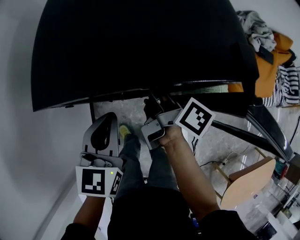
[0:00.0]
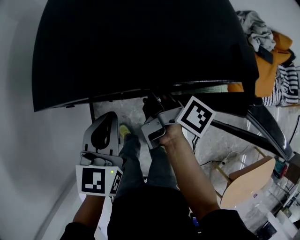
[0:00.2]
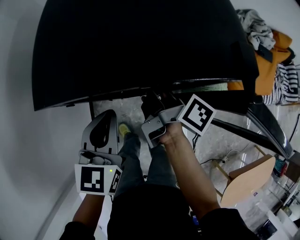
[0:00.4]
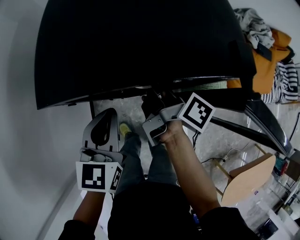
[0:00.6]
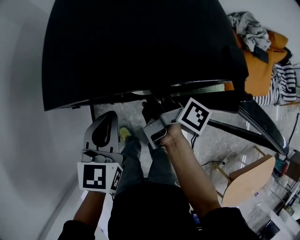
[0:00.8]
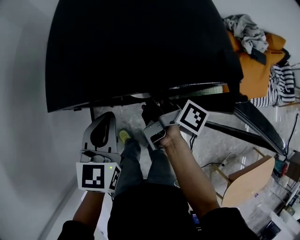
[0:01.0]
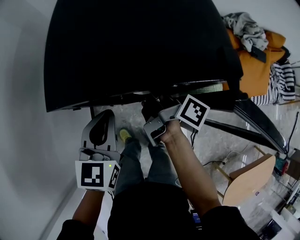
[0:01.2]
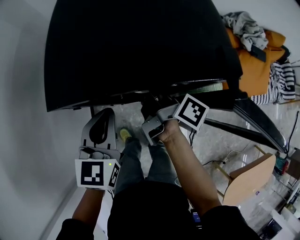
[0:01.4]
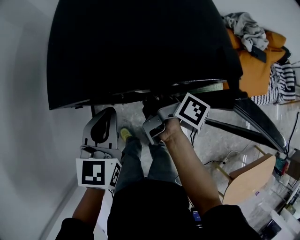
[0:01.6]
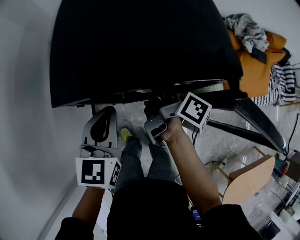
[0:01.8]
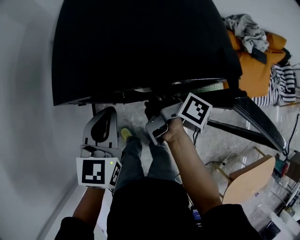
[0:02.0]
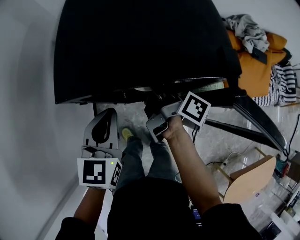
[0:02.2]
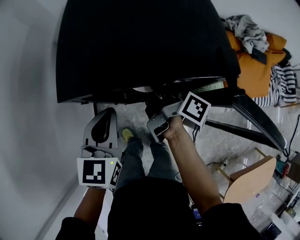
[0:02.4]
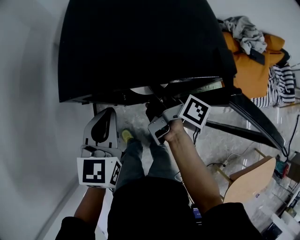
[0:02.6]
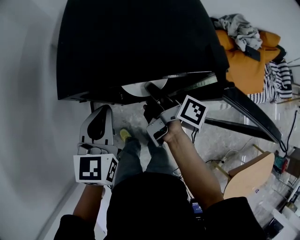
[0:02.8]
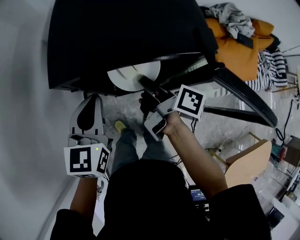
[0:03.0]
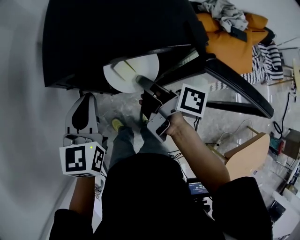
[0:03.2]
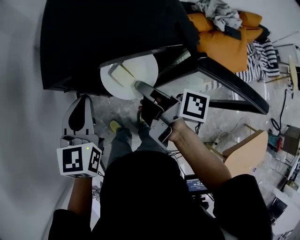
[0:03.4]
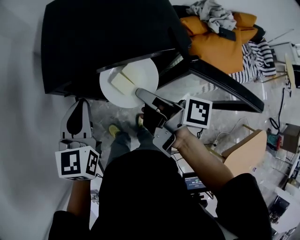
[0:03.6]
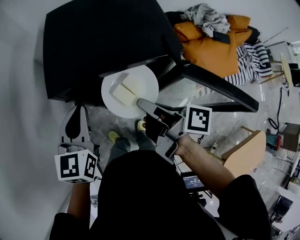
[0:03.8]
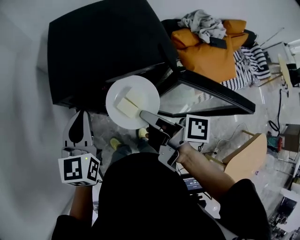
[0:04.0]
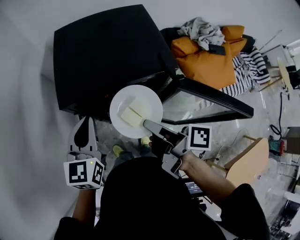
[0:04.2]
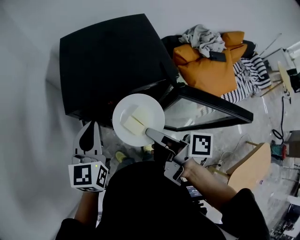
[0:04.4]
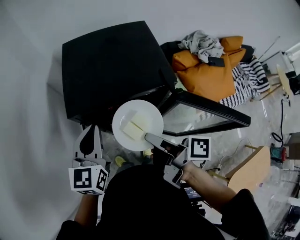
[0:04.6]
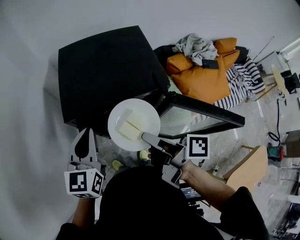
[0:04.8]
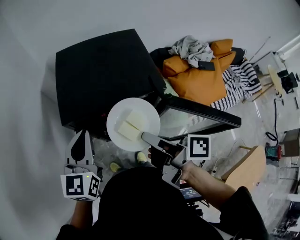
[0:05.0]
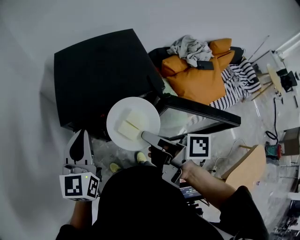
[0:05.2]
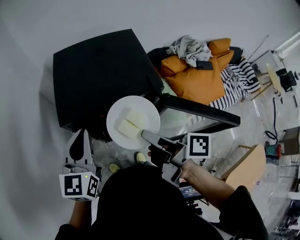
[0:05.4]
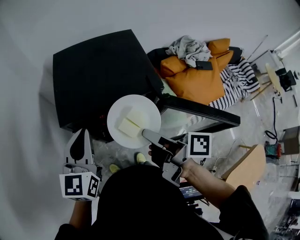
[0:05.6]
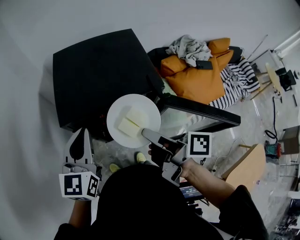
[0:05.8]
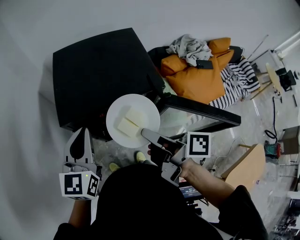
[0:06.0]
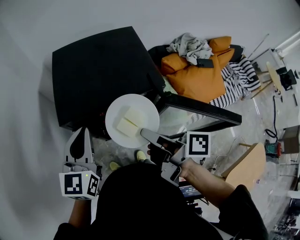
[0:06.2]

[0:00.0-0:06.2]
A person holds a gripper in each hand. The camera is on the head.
0:00.0 to 0:01.6: The right gripper closes.
0:01.6 to 0:03.2: The right gripper is displaced backward and upward by about 10 cm. The left gripper shifts by about 5 cm.
0:03.2 to 0:04.6: The right gripper moves upward and backward, roughly 15 cm. The left gripper is displaced upward by approximately 5 cm.
0:04.6 to 0:06.2: The grippers move only a little.

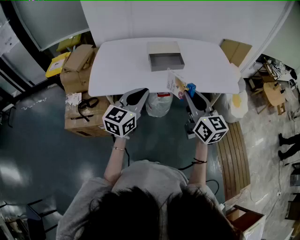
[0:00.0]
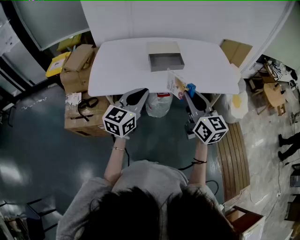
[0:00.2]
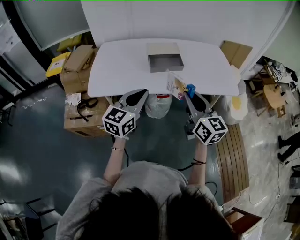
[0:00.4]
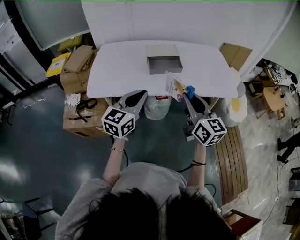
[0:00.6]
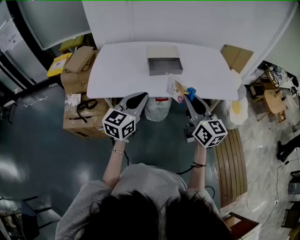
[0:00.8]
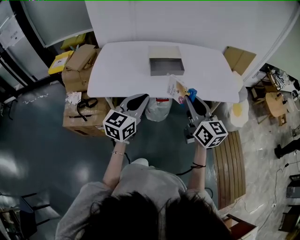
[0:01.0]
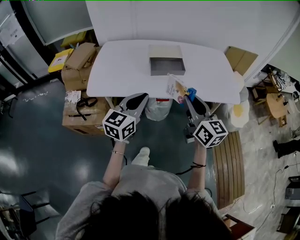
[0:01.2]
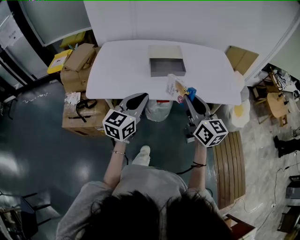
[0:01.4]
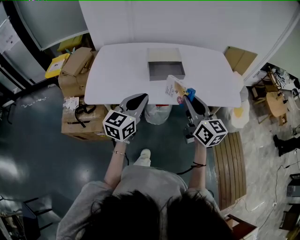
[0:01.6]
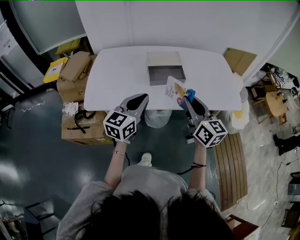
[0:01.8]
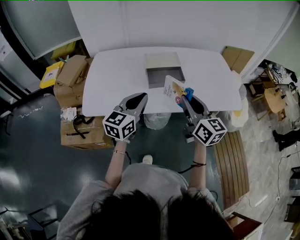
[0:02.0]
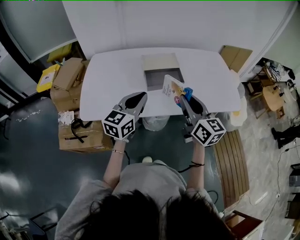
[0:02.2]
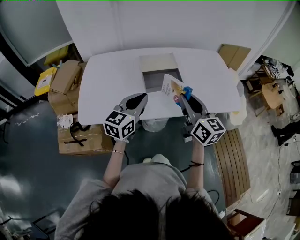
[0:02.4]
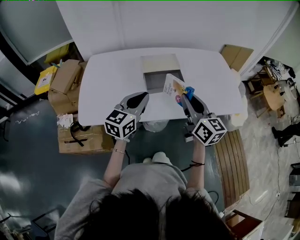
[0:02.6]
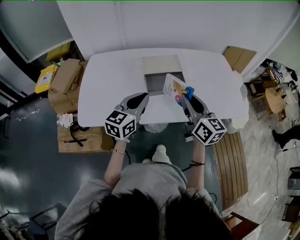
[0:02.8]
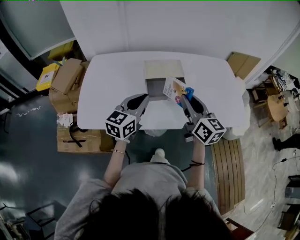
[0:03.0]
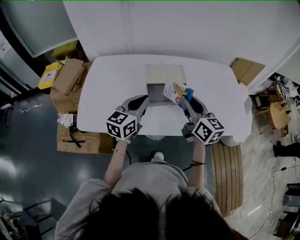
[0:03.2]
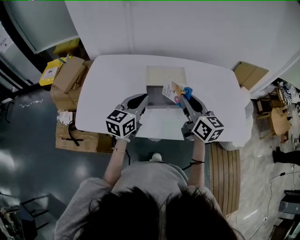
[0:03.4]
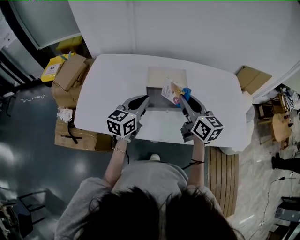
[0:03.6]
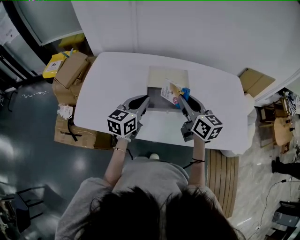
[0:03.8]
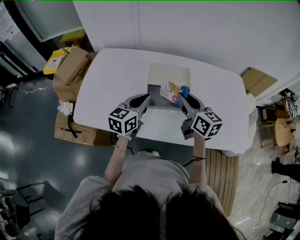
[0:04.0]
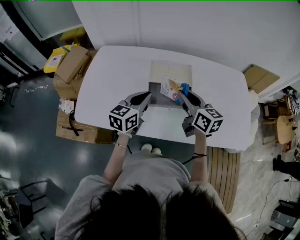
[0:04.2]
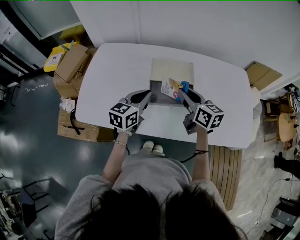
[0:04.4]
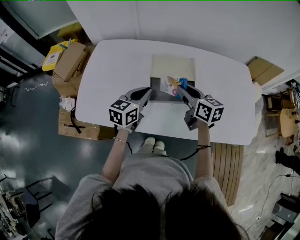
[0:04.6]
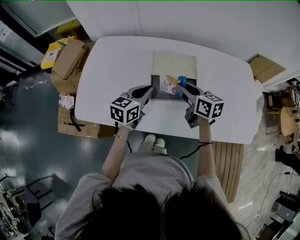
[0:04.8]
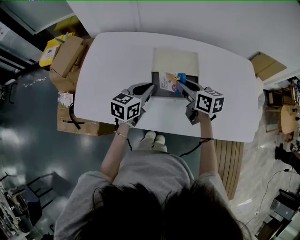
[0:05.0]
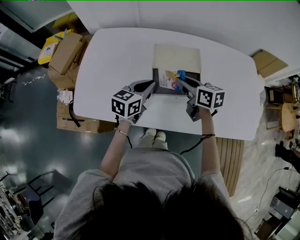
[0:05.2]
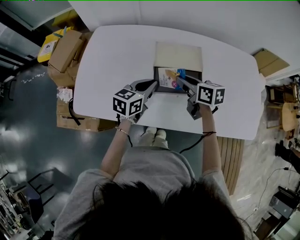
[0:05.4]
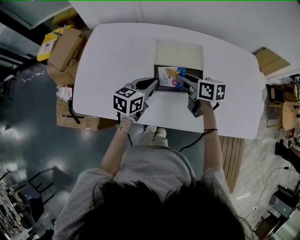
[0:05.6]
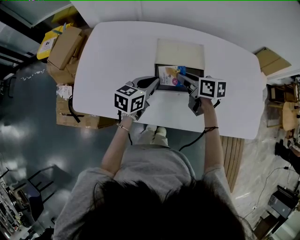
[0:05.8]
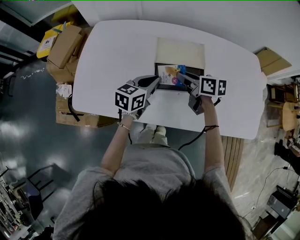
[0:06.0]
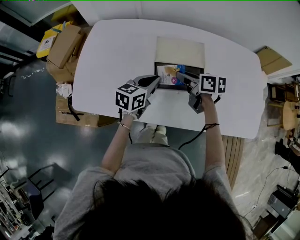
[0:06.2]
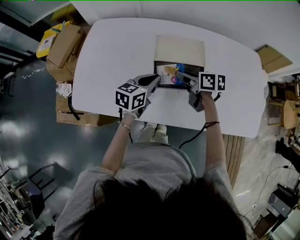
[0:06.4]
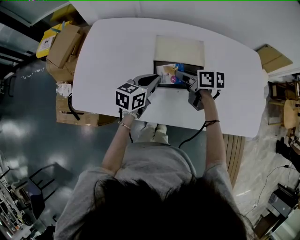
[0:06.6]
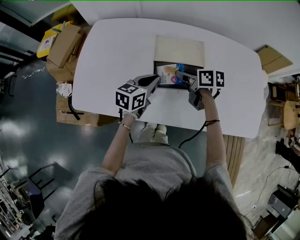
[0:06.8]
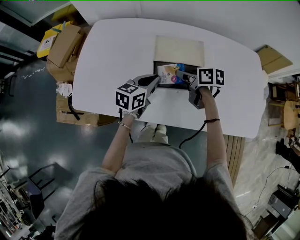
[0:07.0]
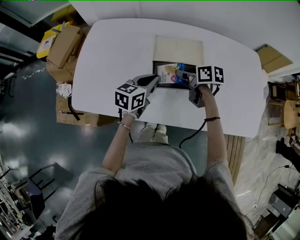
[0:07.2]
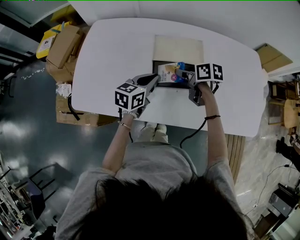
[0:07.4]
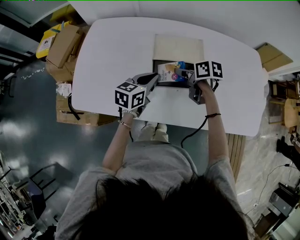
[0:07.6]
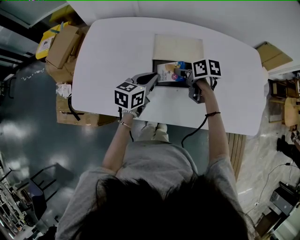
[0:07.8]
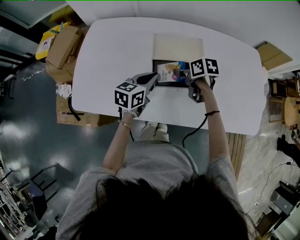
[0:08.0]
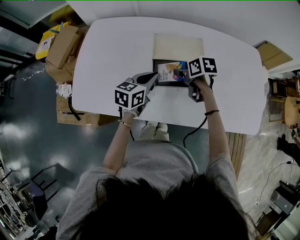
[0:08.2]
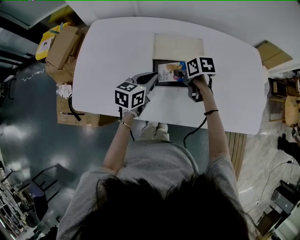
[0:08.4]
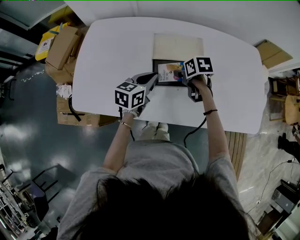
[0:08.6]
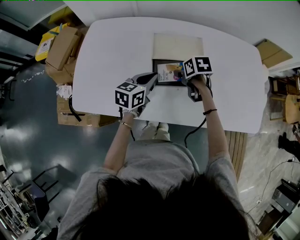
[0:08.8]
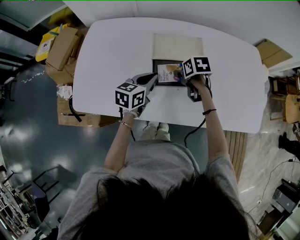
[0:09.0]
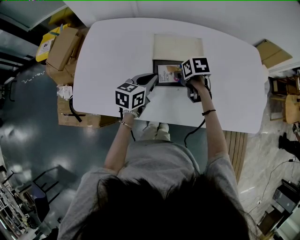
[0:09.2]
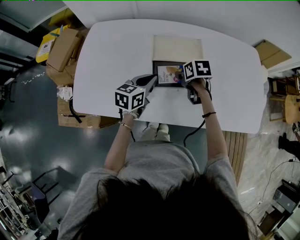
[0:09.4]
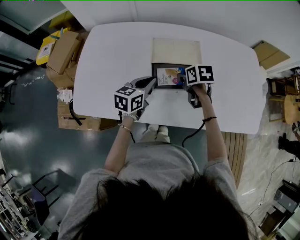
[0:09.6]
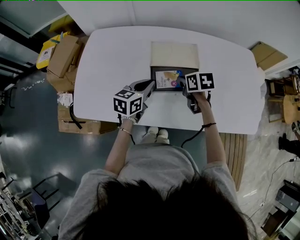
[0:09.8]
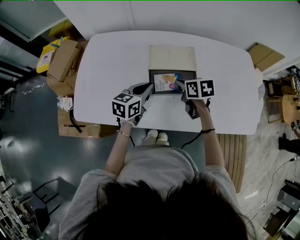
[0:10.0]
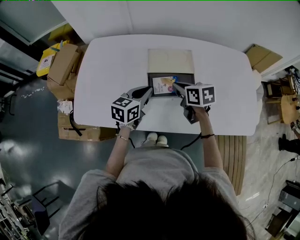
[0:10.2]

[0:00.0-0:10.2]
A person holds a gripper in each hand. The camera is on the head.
0:00.0 to 0:01.4: The right gripper moves forward, approximately 5 cm.
0:01.4 to 0:03.0: The two grippers go about 20 cm forward.
0:03.0 to 0:04.4: Both grippers travel together forward and downward, roughly 15 cm. The right gripper changes its angle by about 20 degrees.
0:04.4 to 0:05.8: The grippers both shift downward by roughly 10 cm. The right gripper turns by roughly 20 degrees.
0:05.8 to 0:07.2: The grippers move only a little.
0:07.2 to 0:08.8: The right gripper changes place by approximately 5 cm, changes its angle by some 30 degrees, and opens its fingers.
0:08.8 to 0:10.2: The right gripper goes some 10 cm upward, turns by some 20 degrees, and closes.

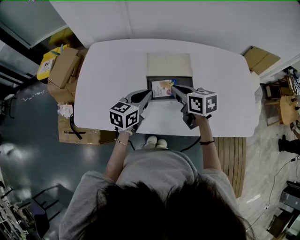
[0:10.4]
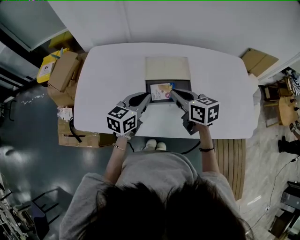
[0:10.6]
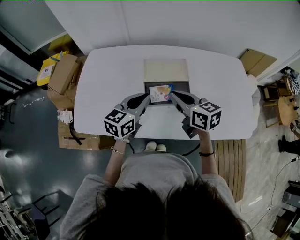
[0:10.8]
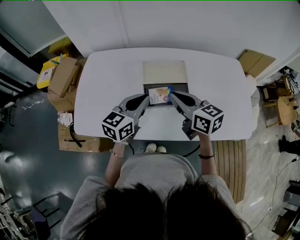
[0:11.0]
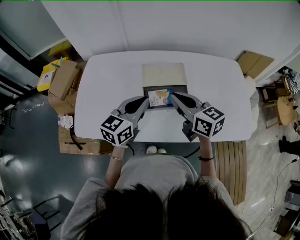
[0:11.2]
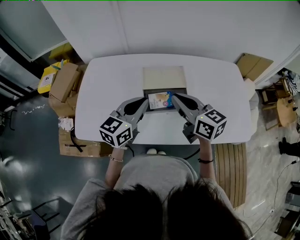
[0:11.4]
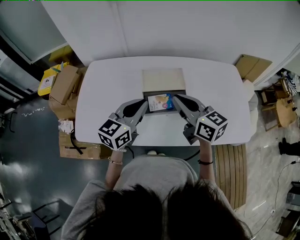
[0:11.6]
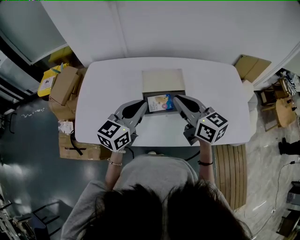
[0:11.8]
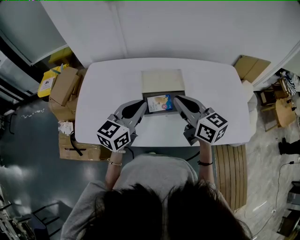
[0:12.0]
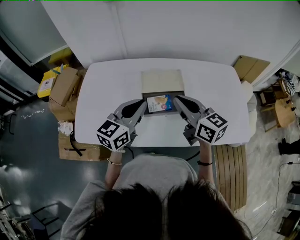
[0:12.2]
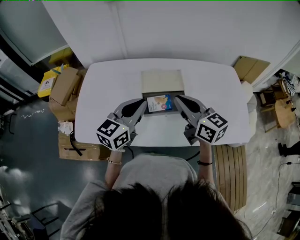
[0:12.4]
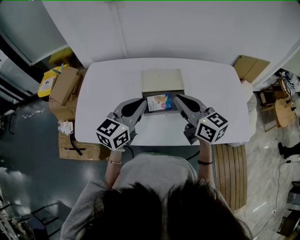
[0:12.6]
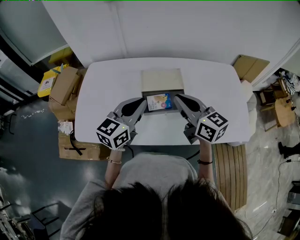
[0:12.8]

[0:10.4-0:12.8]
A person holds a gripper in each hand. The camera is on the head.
0:10.4 to 0:11.6: The two grippers go about 10 cm upward. The right gripper swivels roughly 30 degrees.
0:11.6 to 0:12.8: Both grippers stay put.

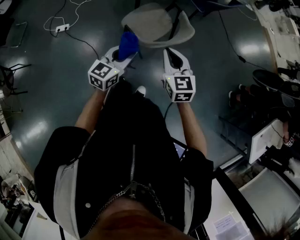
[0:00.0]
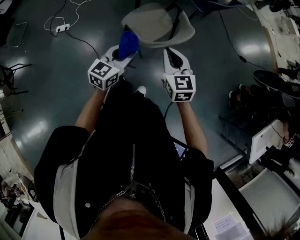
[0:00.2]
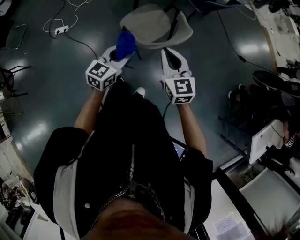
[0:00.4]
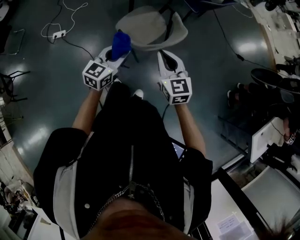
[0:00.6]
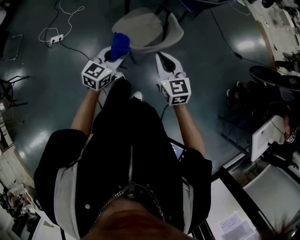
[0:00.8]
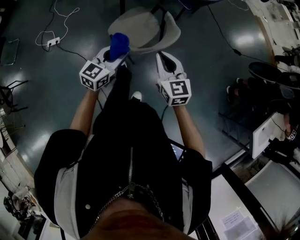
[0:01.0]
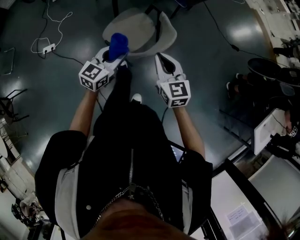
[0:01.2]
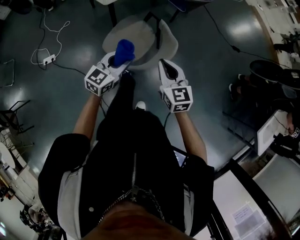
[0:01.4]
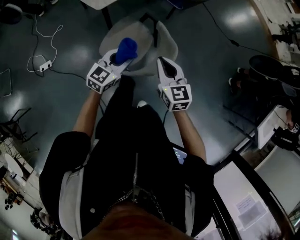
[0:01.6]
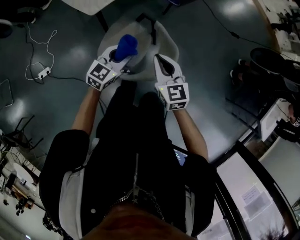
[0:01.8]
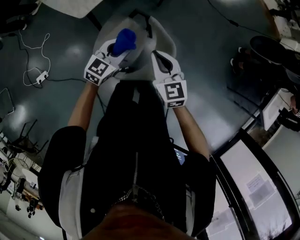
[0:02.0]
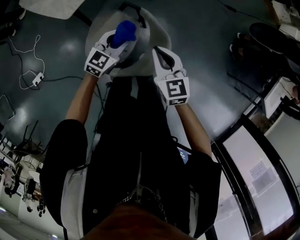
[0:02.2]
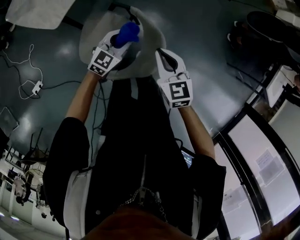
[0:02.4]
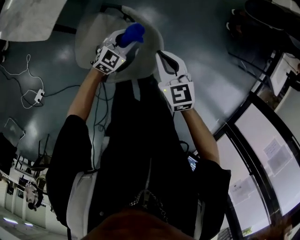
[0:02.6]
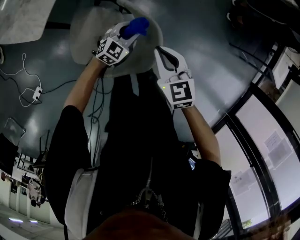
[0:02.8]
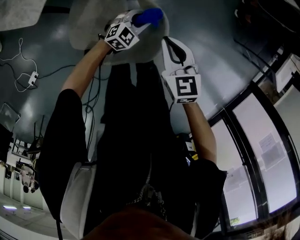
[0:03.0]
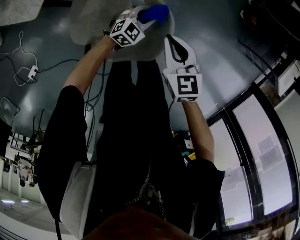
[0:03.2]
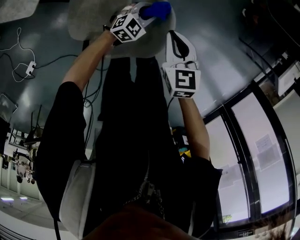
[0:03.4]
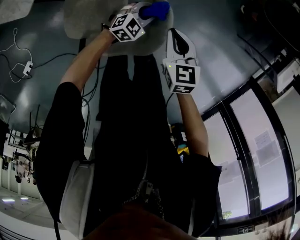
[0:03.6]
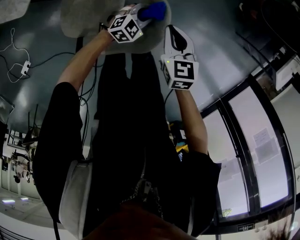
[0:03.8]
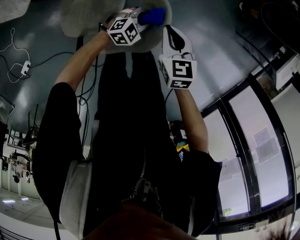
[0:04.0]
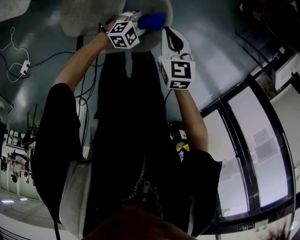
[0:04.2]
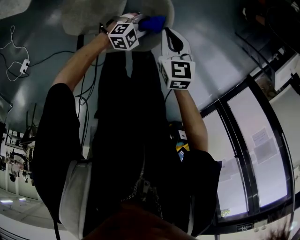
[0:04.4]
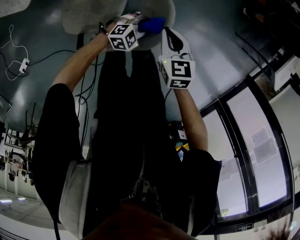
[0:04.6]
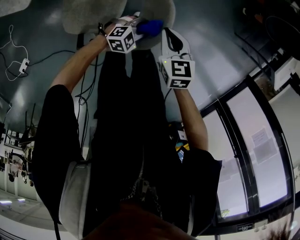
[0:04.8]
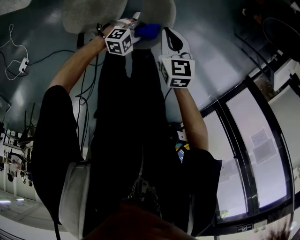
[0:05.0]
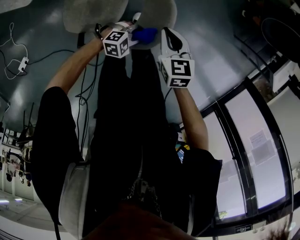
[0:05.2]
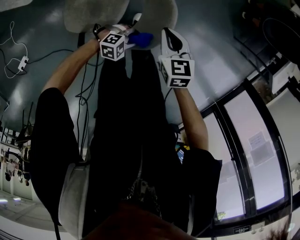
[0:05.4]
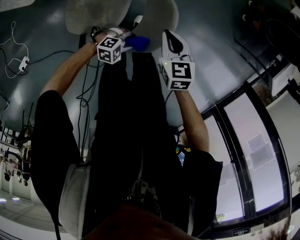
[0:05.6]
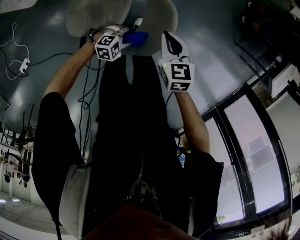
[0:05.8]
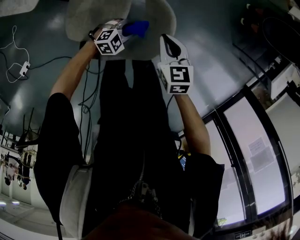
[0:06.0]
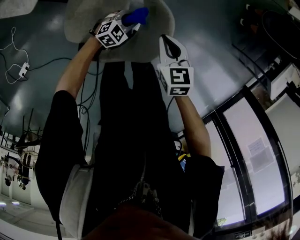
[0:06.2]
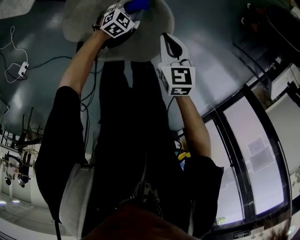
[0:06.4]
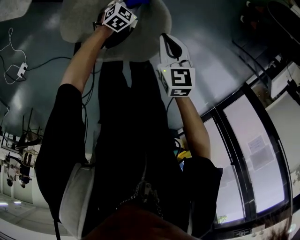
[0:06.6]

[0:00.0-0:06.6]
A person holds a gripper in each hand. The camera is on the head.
0:00.0 to 0:01.6: The two grippers go roughly 25 cm forward. The left gripper turns by roughly 20 degrees.
0:01.6 to 0:03.2: The right gripper shifts some 15 cm downward, and changes its angle by roughly 30 degrees, while the left gripper is displaced downward by some 25 cm, and rotates some 40 degrees.
0:03.2 to 0:05.0: The right gripper shifts roughly 5 cm downward; the left gripper heads backward and to the right, covering about 15 cm, and changes its angle by some 30 degrees.
0:05.0 to 0:06.6: The left gripper changes place by roughly 20 cm, and rotates about 40 degrees.
